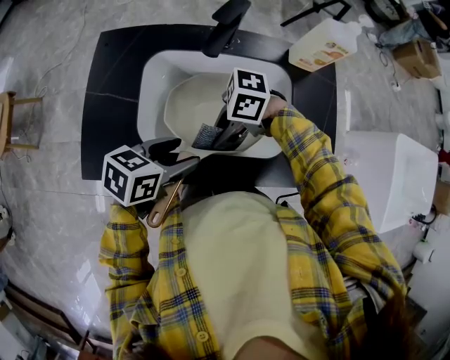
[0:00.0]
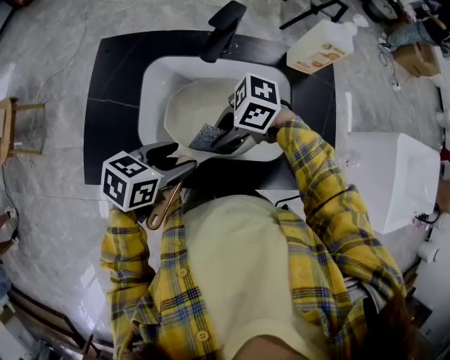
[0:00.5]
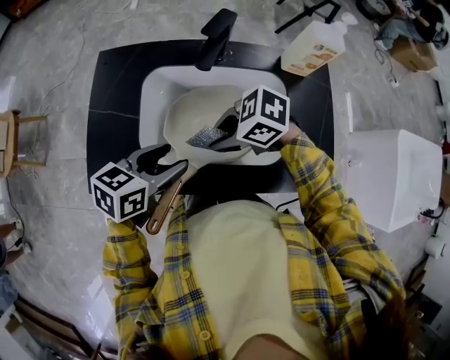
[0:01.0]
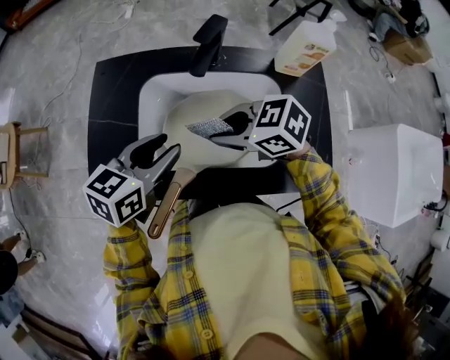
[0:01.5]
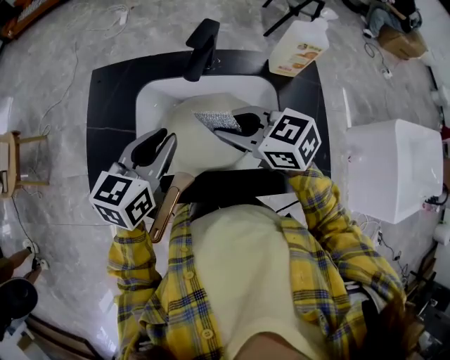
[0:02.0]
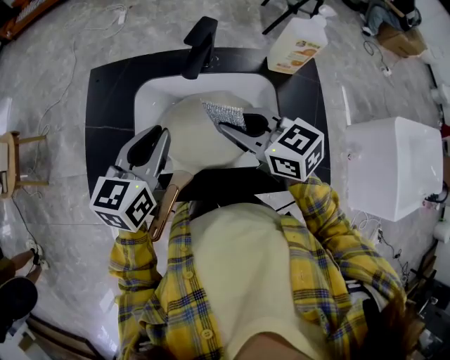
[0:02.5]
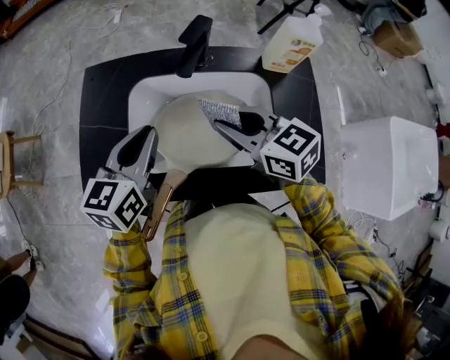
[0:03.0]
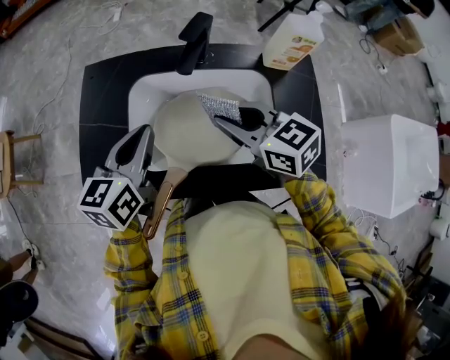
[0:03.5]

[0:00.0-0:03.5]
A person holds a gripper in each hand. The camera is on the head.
0:00.0 to 0:02.0: Both grippers travel together upward, some 10 cm. The right gripper turns by approximately 60 degrees, while the left gripper rotates about 30 degrees, and closes.
0:02.0 to 0:03.5: The grippers stay close to where they were, moving slightly.

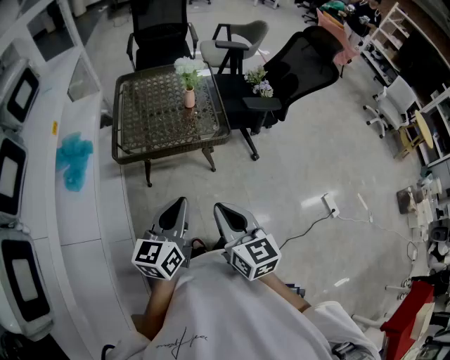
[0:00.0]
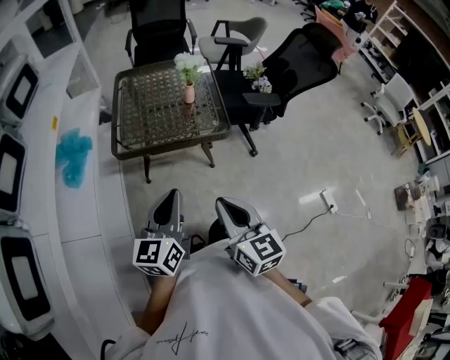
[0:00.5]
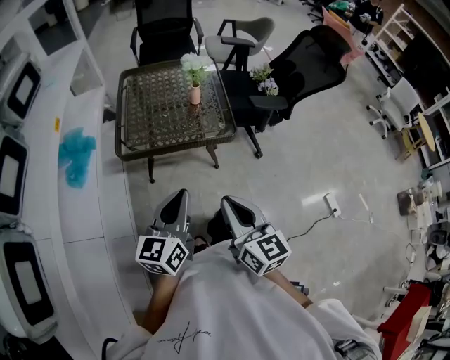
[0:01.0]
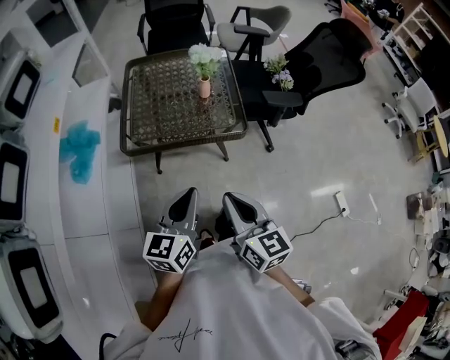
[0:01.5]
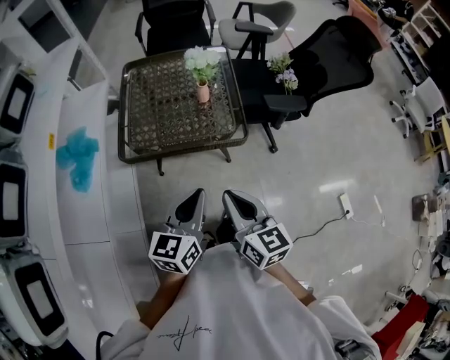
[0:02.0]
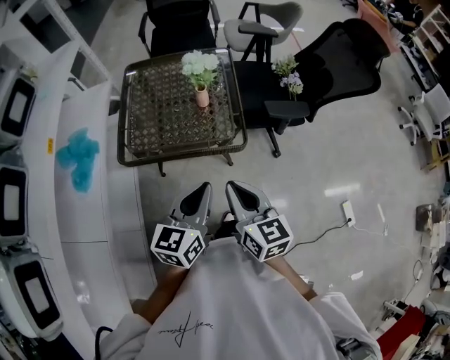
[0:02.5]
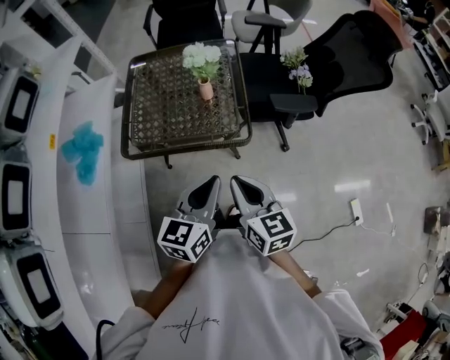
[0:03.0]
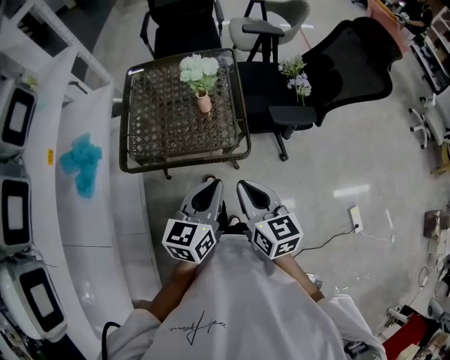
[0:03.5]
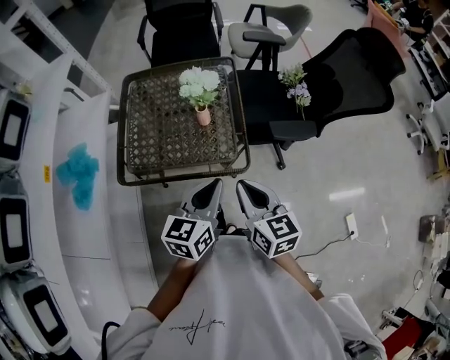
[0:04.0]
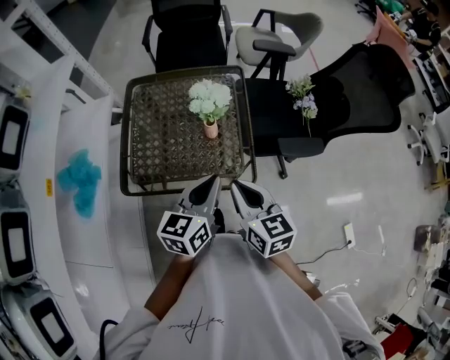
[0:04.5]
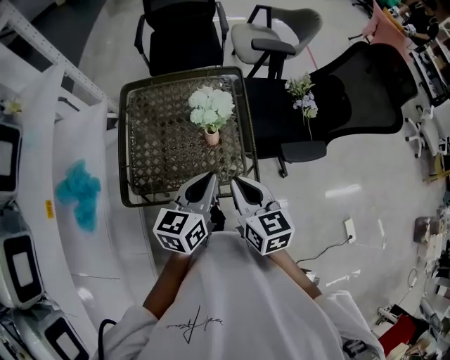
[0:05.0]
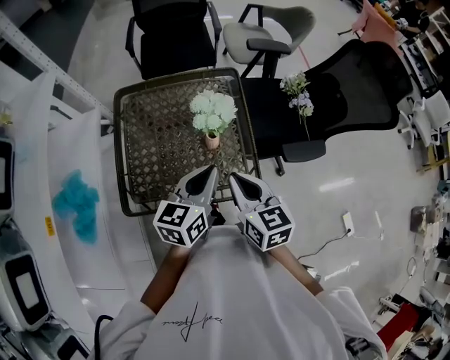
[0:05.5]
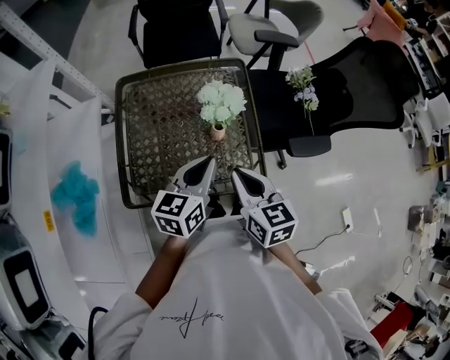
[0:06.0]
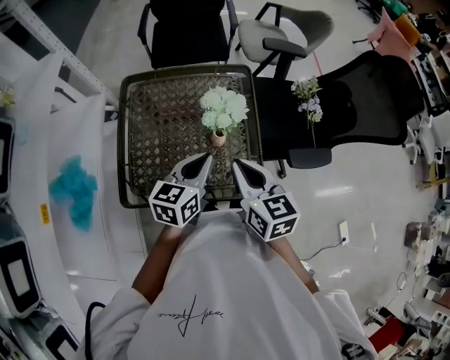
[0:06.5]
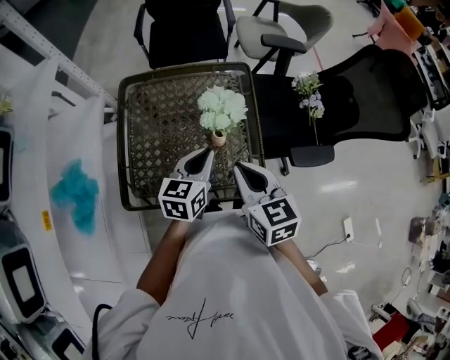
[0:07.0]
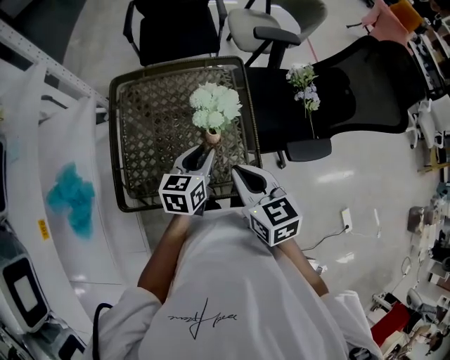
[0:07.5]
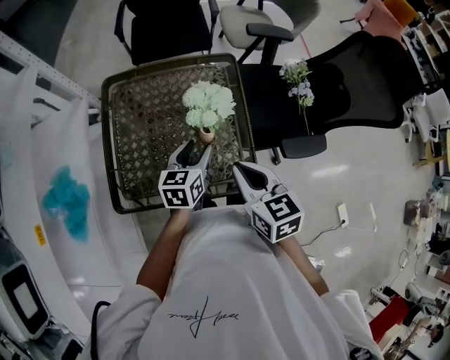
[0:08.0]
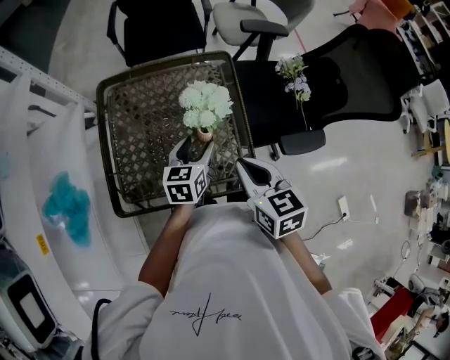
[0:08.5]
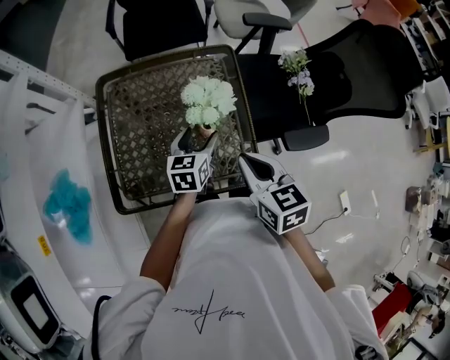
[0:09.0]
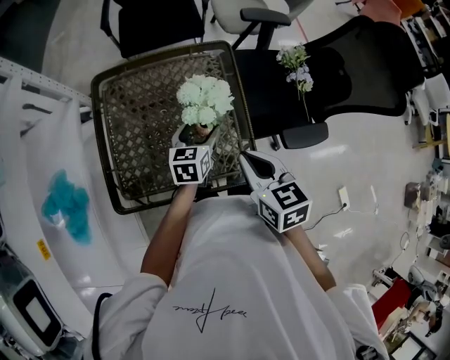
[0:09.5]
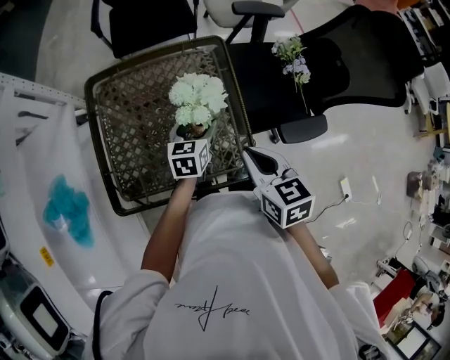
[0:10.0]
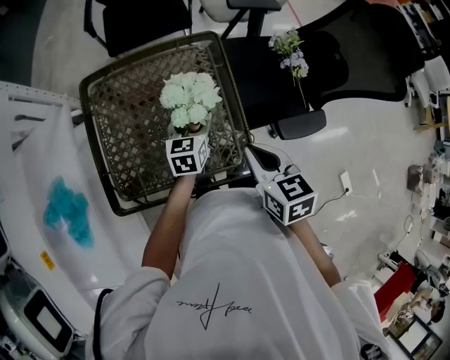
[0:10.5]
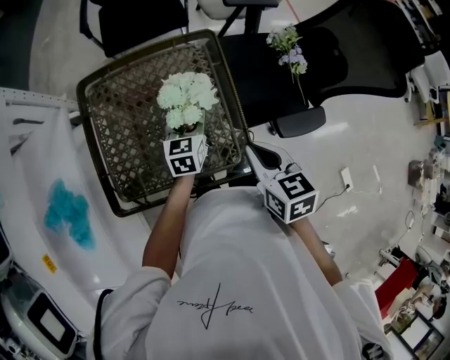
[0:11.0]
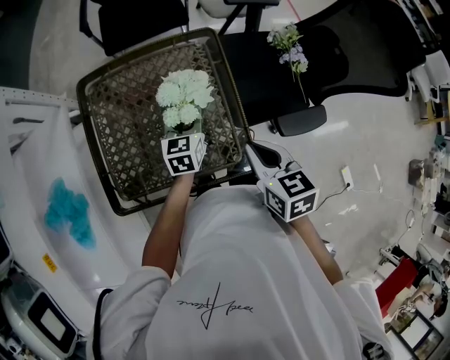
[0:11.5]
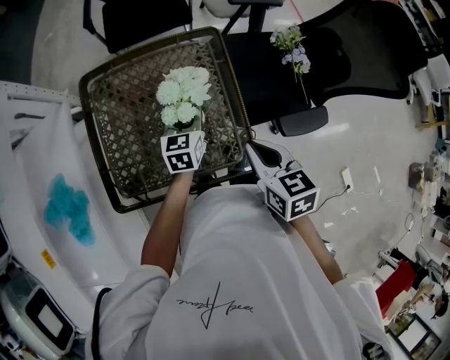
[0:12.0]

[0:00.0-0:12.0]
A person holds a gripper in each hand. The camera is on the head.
0:00.0 to 0:02.0: Both grippers move forward, about 15 cm.
0:02.0 to 0:04.0: Both grippers travel together forward and to the right, some 20 cm.
0:04.0 to 0:06.0: Both grippers travel together forward and to the left, roughly 20 cm.
0:06.0 to 0:08.0: The left gripper moves downward and forward, about 15 cm, and opens. The right gripper moves some 5 cm.
0:08.0 to 0:10.0: The left gripper goes approximately 10 cm forward and downward, and opens its fingers, while the right gripper shifts by approximately 5 cm.
0:10.0 to 0:12.0: The left gripper closes.

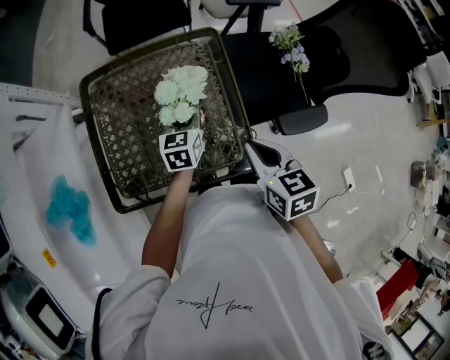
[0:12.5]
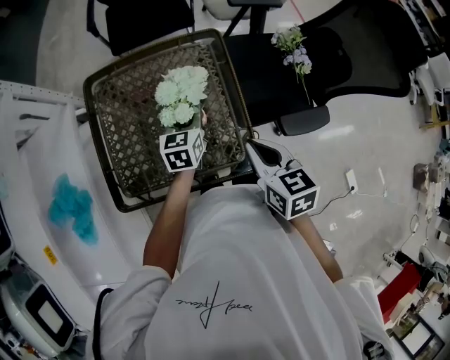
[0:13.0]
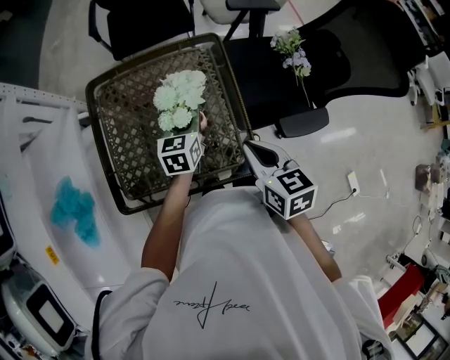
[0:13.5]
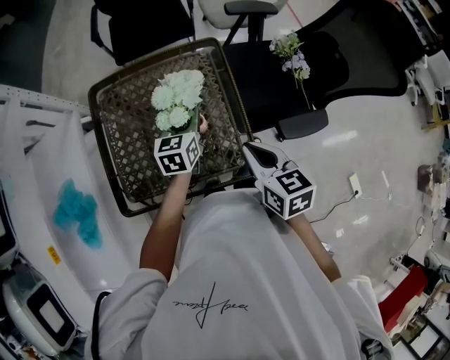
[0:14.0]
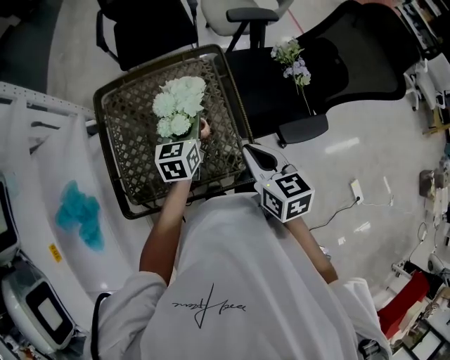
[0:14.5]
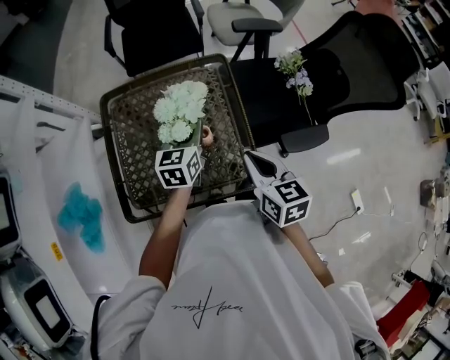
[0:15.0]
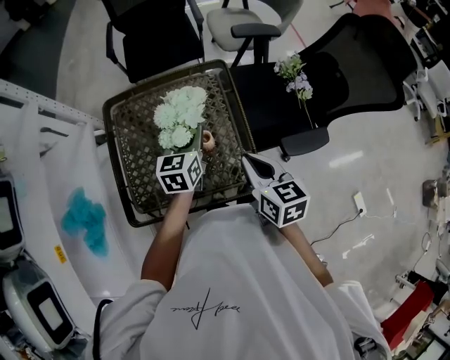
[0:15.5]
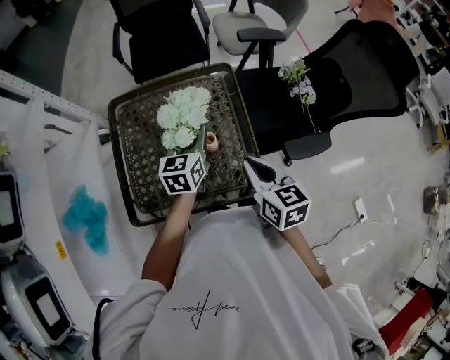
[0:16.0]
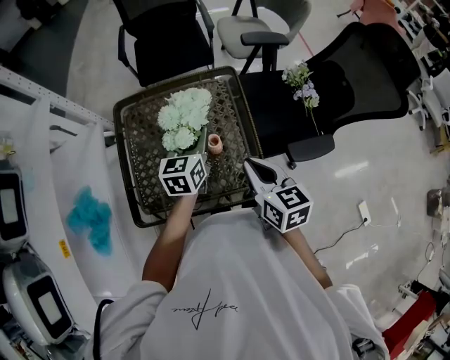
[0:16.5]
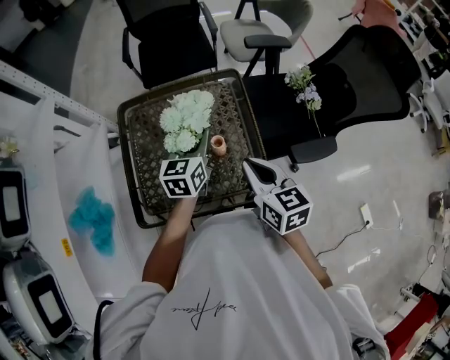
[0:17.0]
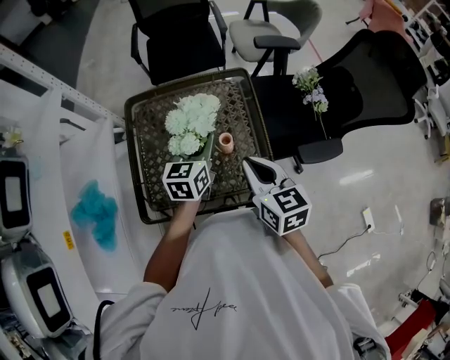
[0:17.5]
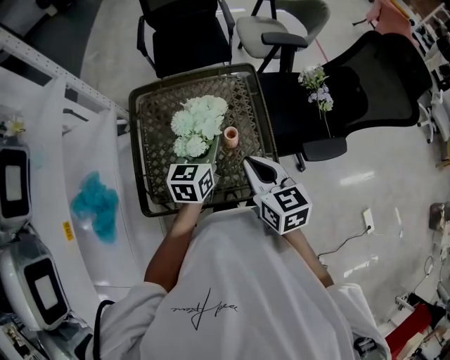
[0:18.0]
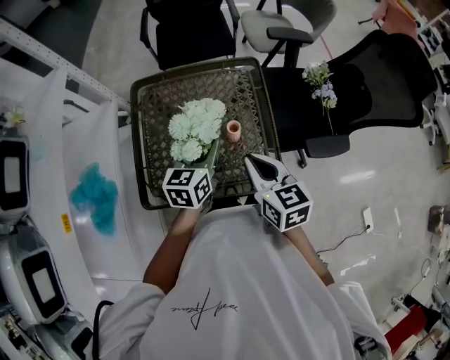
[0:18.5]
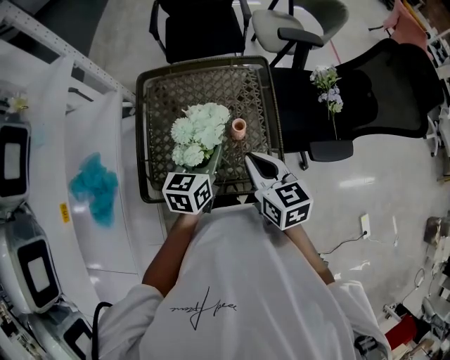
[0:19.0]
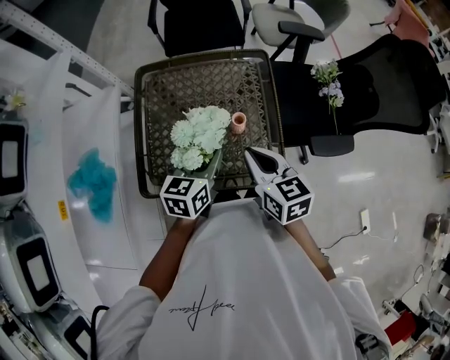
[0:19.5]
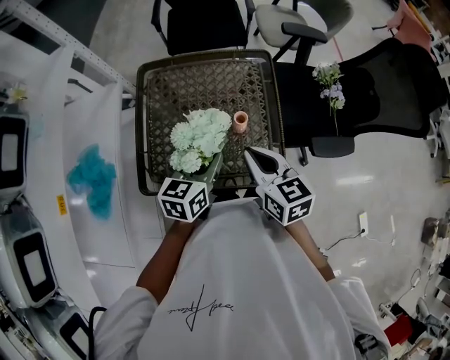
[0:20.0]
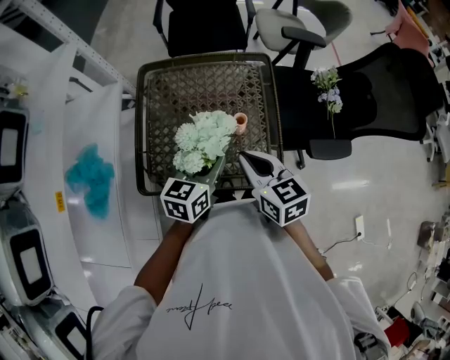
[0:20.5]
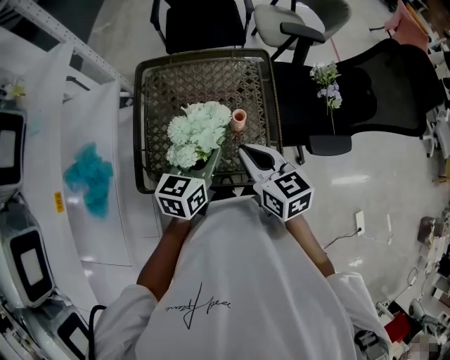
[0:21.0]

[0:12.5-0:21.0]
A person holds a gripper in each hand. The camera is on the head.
0:12.5 to 0:14.5: The grippers stay close to where they were, moving slightly.
0:14.5 to 0:16.5: The left gripper shifts about 5 cm upward.
0:16.5 to 0:19.0: The right gripper travels to the left by roughly 5 cm. Meanwhile the left gripper goes about 10 cm backward and to the left.
0:19.0 to 0:21.0: There are only small adjustments of the grippers.

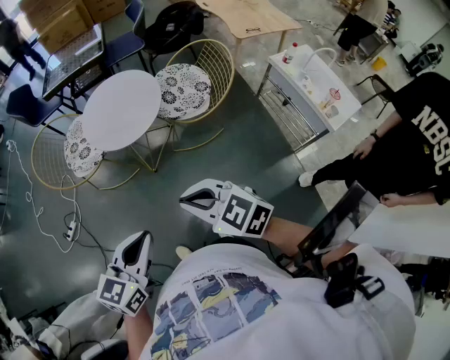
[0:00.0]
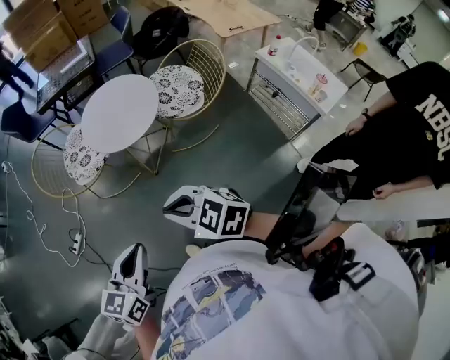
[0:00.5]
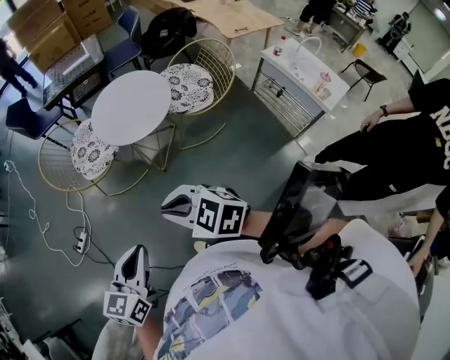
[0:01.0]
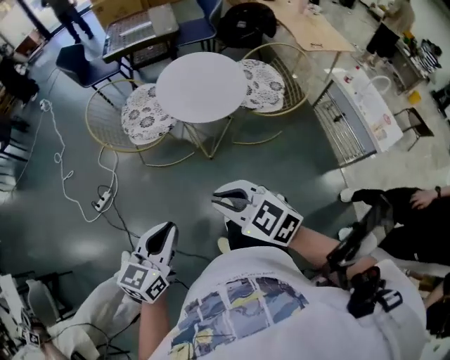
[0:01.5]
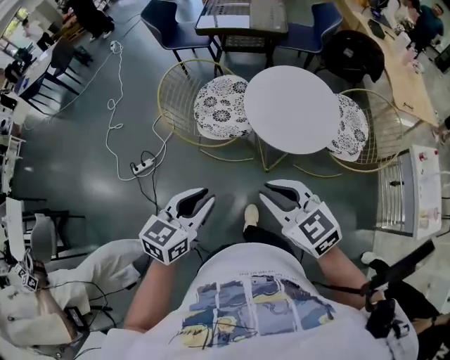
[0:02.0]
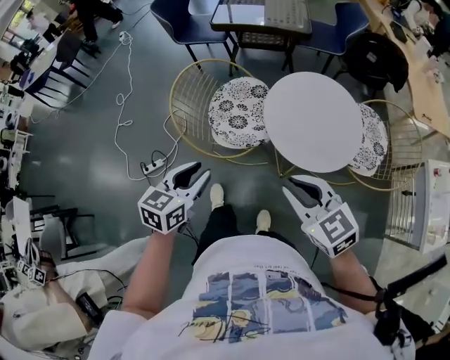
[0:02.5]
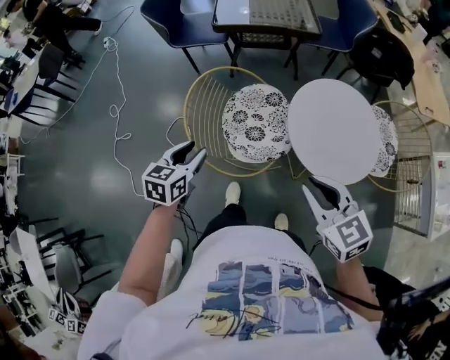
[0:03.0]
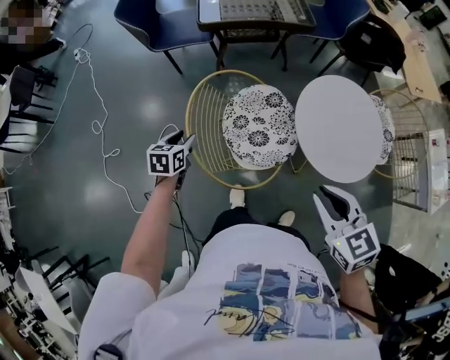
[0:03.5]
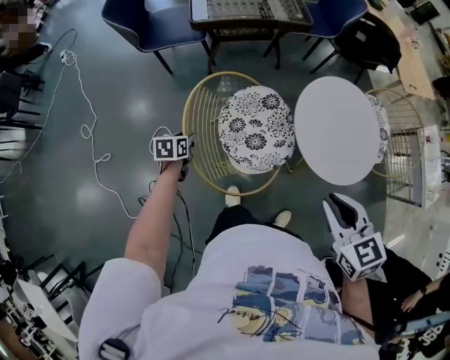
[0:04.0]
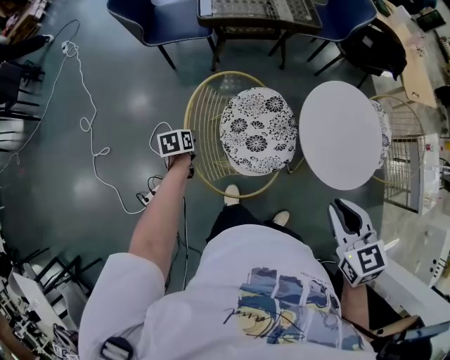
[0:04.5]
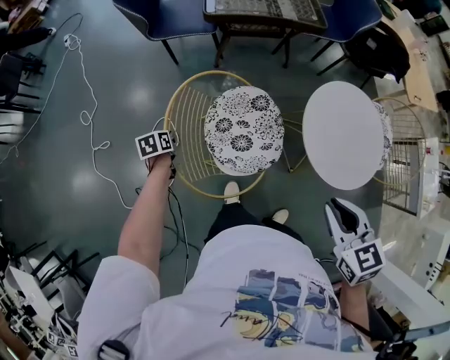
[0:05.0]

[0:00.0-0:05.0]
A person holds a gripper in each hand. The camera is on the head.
0:00.0 to 0:02.5: The two grippers travel together, forward and to the left, about 50 cm. The left gripper rotates some 20 degrees, and opens up.
0:02.5 to 0:05.0: The left gripper travels to the left, forward and downward by some 60 cm, changes its angle by some 40 degrees, and closes its fingers. Meanwhile the right gripper shifts about 25 cm to the left and forward, and swivels some 40 degrees.
